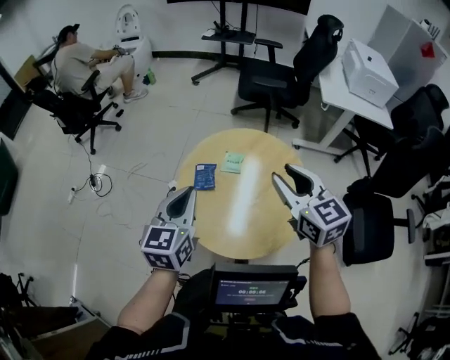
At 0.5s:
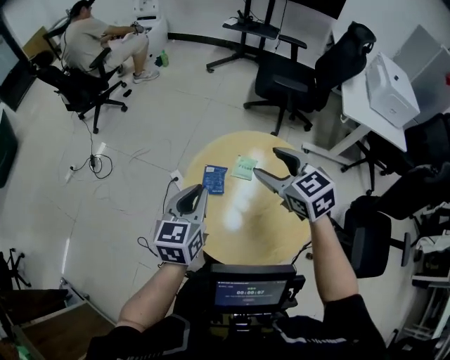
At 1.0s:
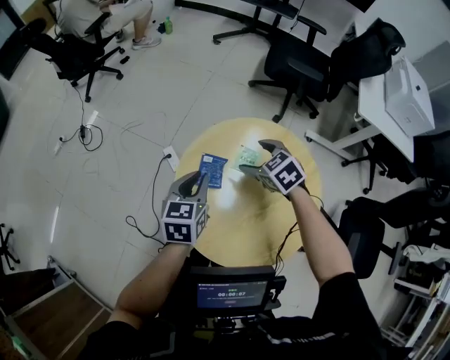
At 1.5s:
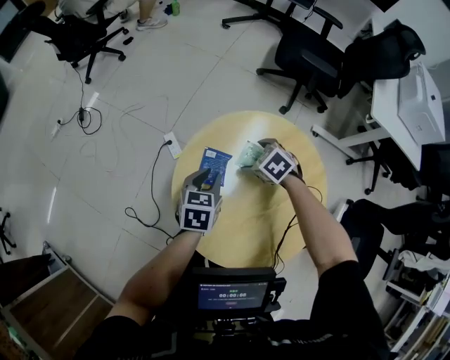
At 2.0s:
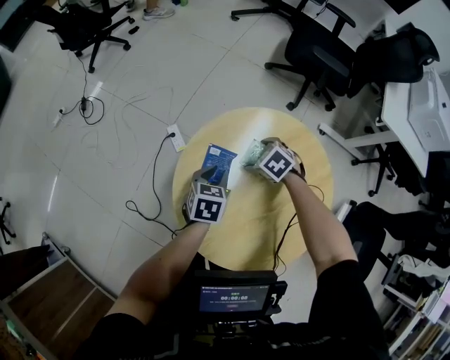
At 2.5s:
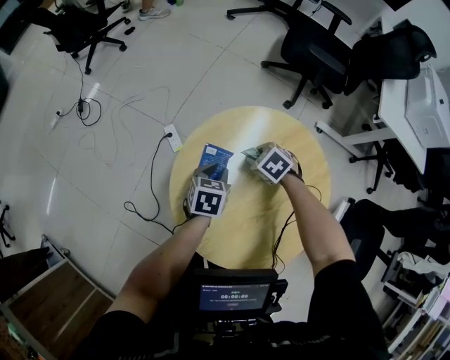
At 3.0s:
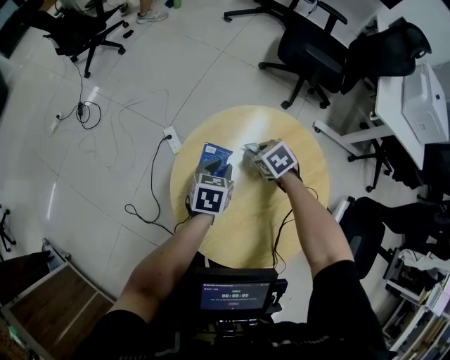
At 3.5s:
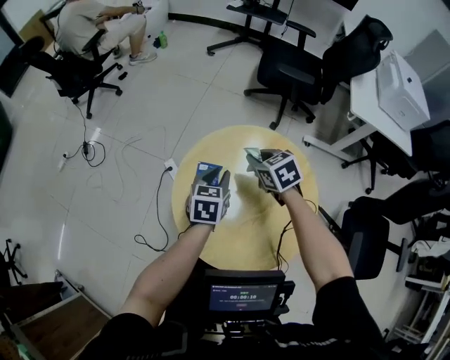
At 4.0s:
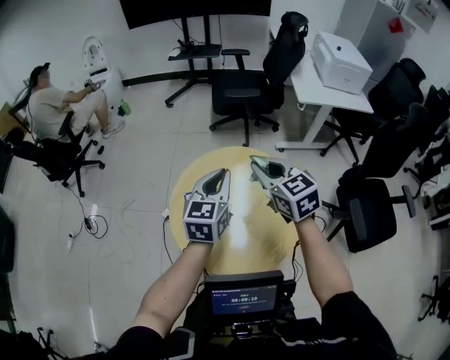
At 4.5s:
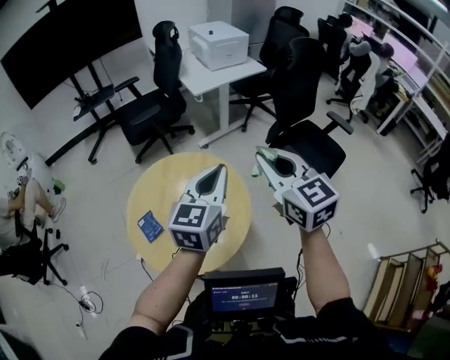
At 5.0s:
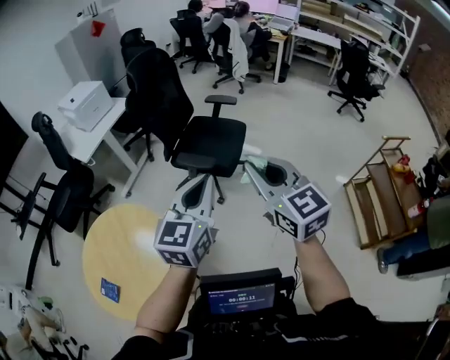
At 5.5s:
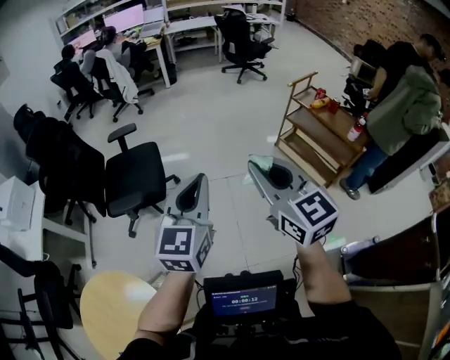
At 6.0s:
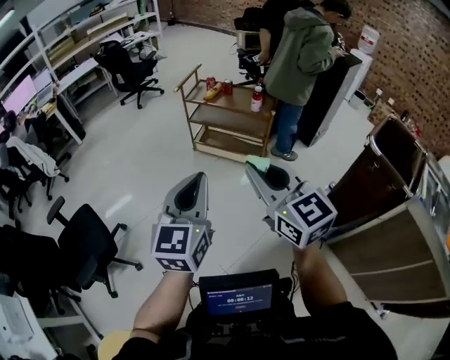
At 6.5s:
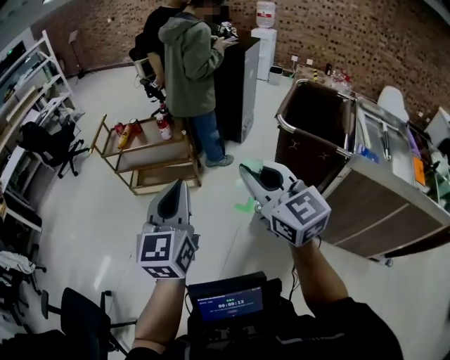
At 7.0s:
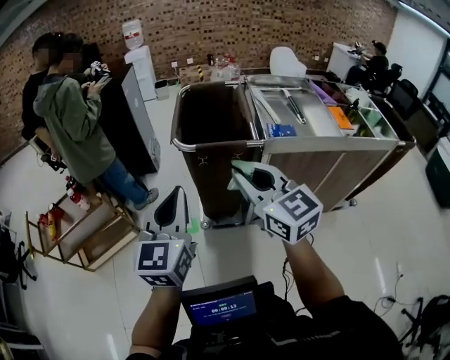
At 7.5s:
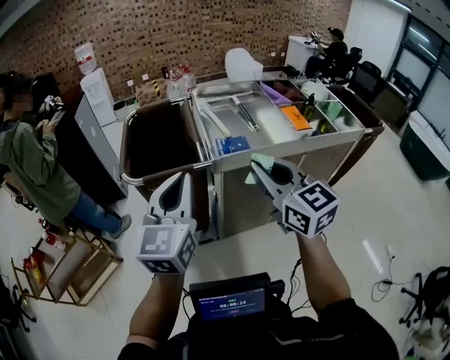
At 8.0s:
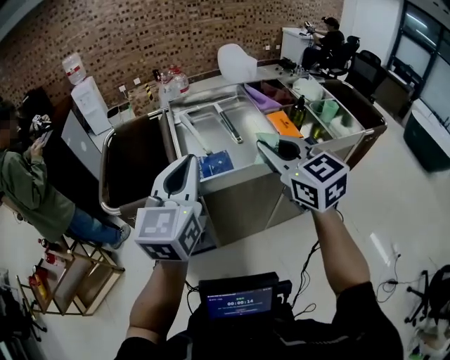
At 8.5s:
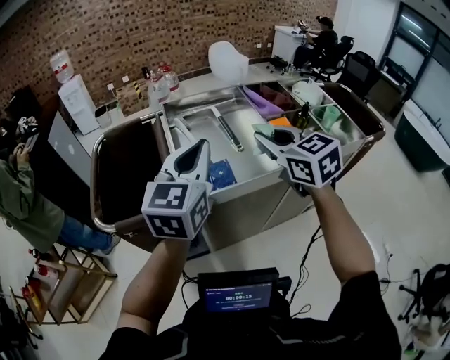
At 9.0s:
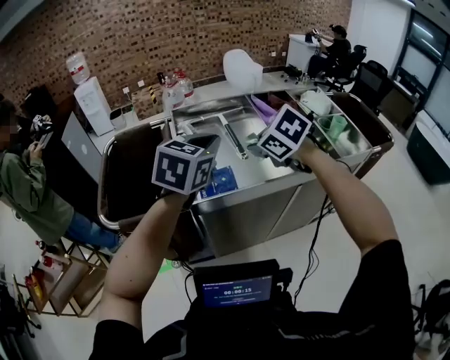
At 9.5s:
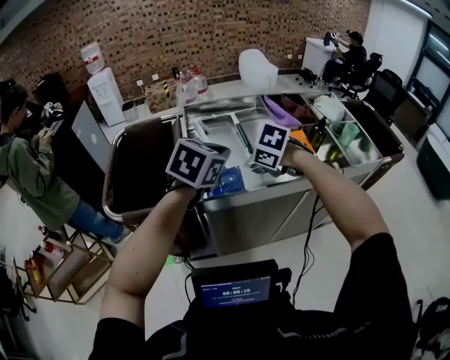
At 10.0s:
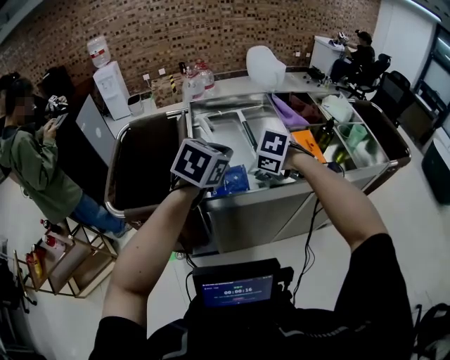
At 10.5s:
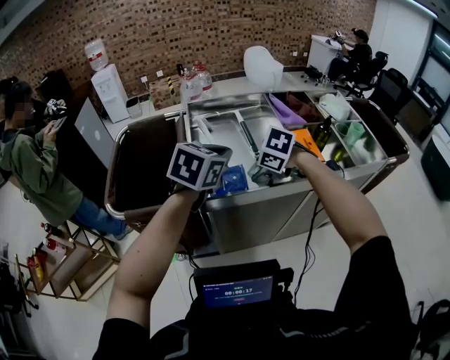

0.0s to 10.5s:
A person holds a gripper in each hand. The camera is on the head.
0.0s to 2.0s: Both grippers move downward, approximately 40 cm. The left gripper tilts its fingers about 30 degrees downward, and opens its fingers. The right gripper points its fingers some 50 degrees further downward, and opens up.
2.0s to 4.0s: The two grippers go some 40 cm upward. The left gripper points its fingers roughly 30 degrees further upward, while the right gripper points its fingers some 50 degrees further upward, and closes.
4.0s to 6.5s: Both grippers are carried approximately 1.5 m. The left gripper rotates approximately 150 degrees; the right gripper changes its angle by approximately 160 degrees.
6.5s to 8.5s: The two grippers travel together, roughly 90 cm. The left gripper rotates approximately 60 degrees, while the right gripper rotates about 50 degrees.
8.5s to 10.5s: The right gripper shifts approximately 20 cm downward, angles its fingers downward, by some 50 degrees, and opens. Meanwhile the left gripper goes some 10 cm downward, and changes its angle by some 30 degrees.

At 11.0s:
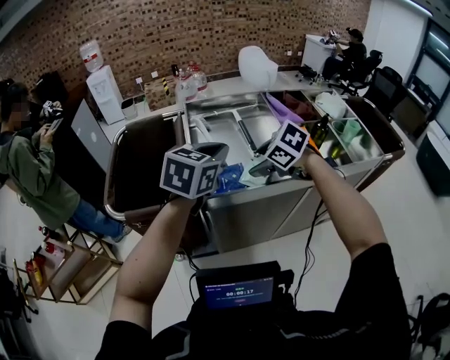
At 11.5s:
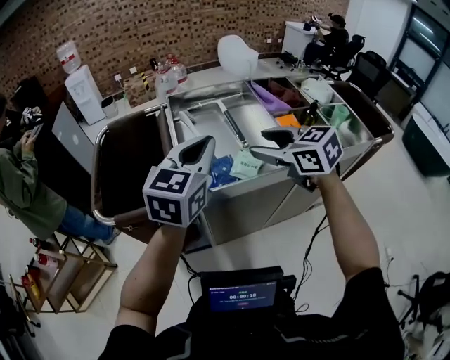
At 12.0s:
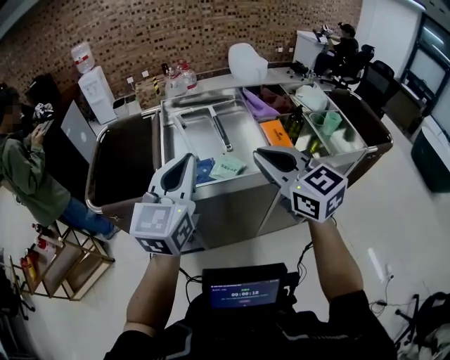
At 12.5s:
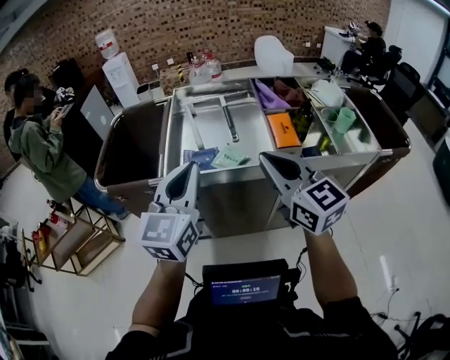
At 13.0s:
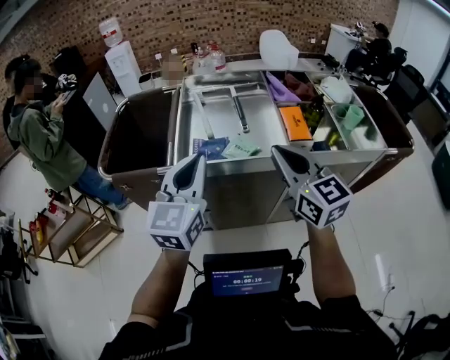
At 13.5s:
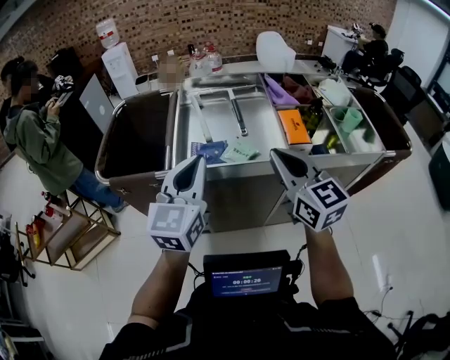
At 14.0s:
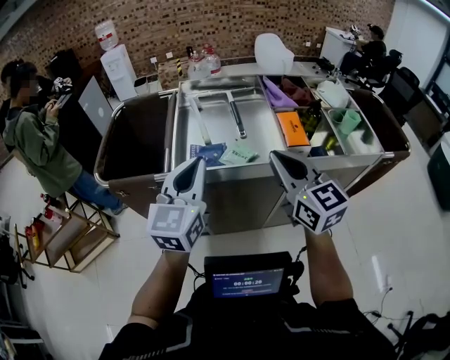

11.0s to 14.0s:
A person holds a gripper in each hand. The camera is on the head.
11.0s to 12.5s: The left gripper travels backward and to the right by approximately 20 cm, and rotates roughly 30 degrees. Meanwhile the right gripper shifts some 30 cm to the right, backward and upward, angles its fingers upward, by roughly 60 degrees, and closes its fingers.
12.5s to 14.0s: The left gripper changes place by about 5 cm.
